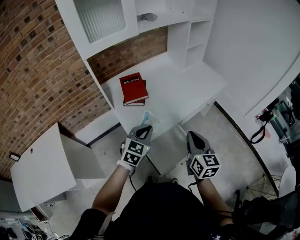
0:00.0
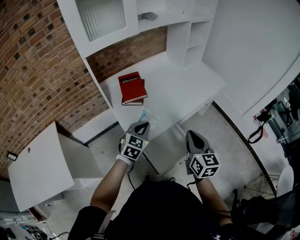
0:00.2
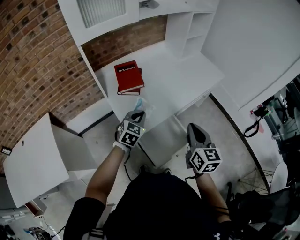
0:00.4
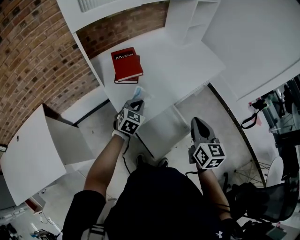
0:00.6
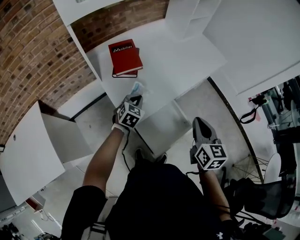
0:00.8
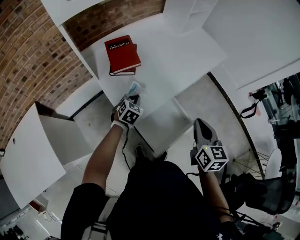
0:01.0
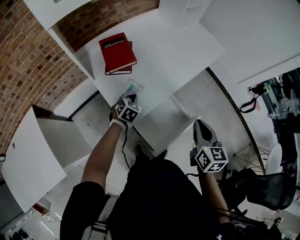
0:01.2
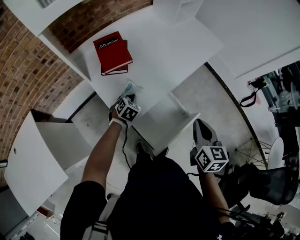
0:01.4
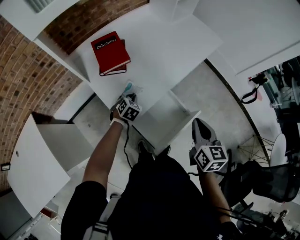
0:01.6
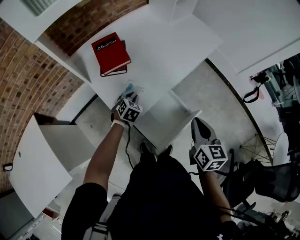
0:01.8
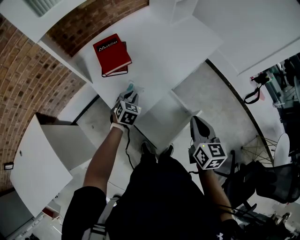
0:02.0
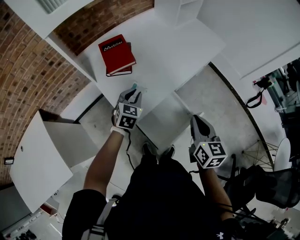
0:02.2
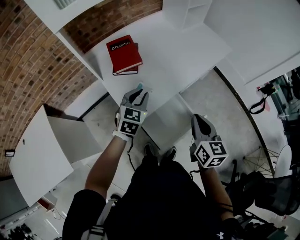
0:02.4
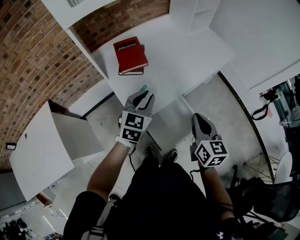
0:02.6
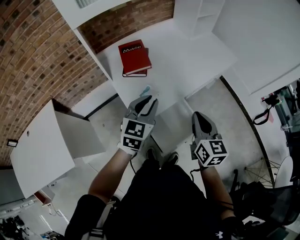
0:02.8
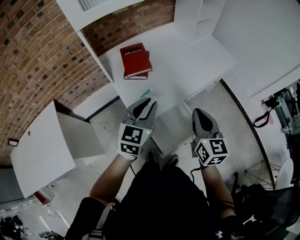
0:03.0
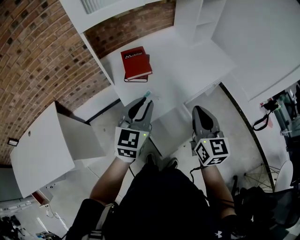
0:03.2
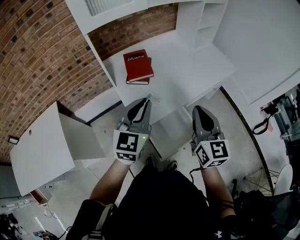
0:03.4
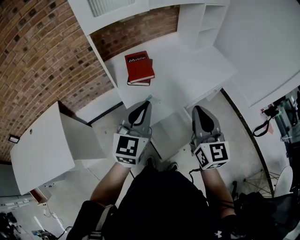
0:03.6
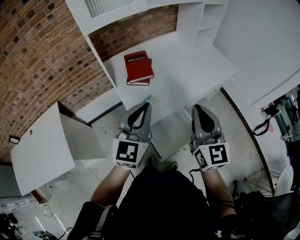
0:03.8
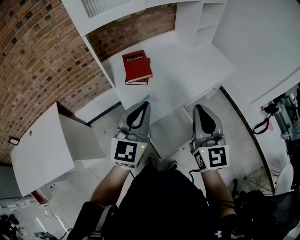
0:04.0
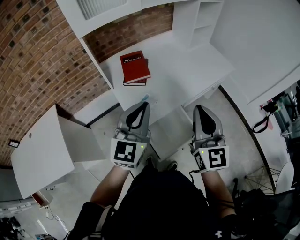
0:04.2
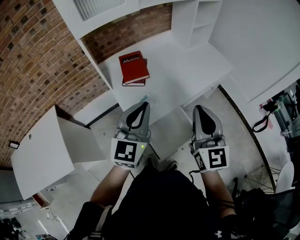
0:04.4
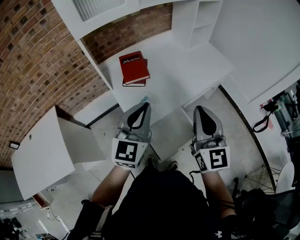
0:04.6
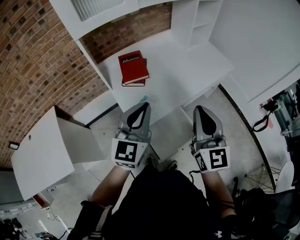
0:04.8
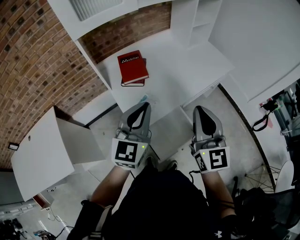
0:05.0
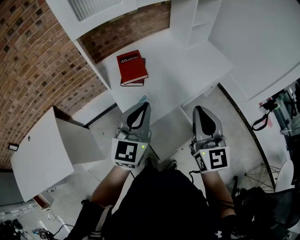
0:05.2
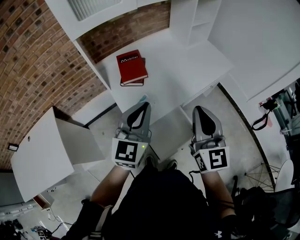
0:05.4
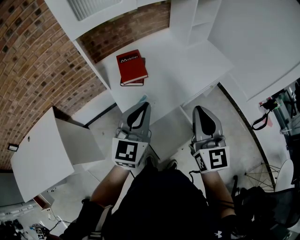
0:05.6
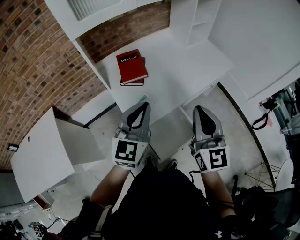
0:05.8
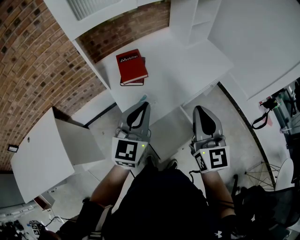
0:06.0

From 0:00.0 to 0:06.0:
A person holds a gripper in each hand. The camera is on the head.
From 0:00.0 to 0:01.6: The right gripper shifts roughly 5 cm downward, while the left gripper is displaced downward and forward by approximately 30 cm, and rotates approximately 30 degrees.
From 0:01.6 to 0:03.0: The right gripper travels upward and to the left by about 10 cm. The left gripper heads upward, covering about 30 cm, and tips its fingers upward by roughly 40 degrees.
From 0:03.0 to 0:04.4: The two grippers go some 10 cm upward. The right gripper rotates approximately 20 degrees.
From 0:04.4 to 0:06.0: The grippers move only a little.

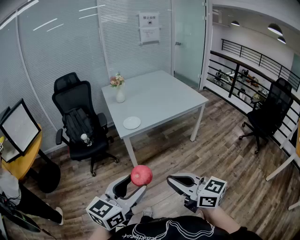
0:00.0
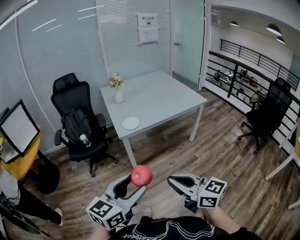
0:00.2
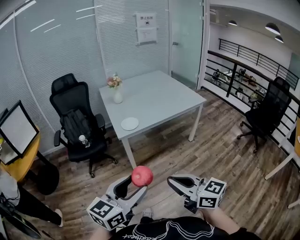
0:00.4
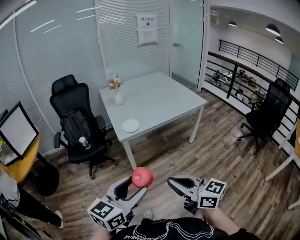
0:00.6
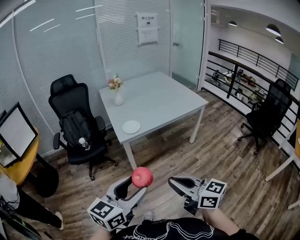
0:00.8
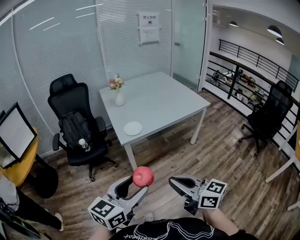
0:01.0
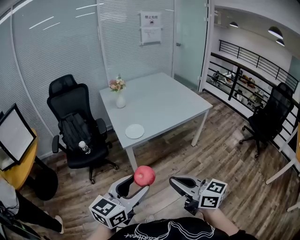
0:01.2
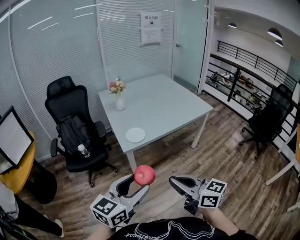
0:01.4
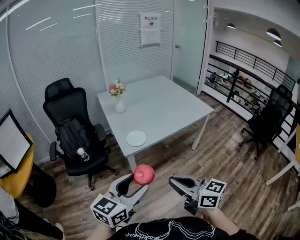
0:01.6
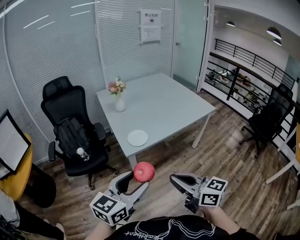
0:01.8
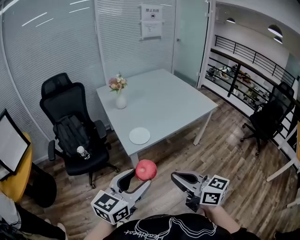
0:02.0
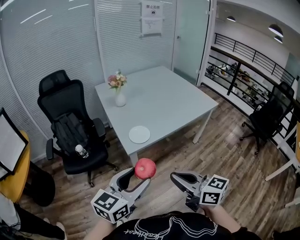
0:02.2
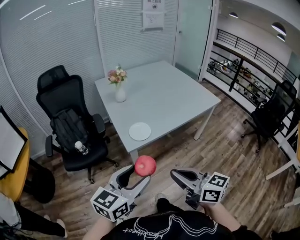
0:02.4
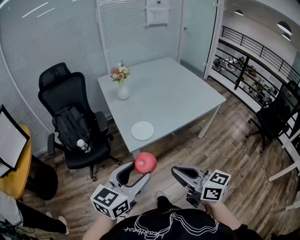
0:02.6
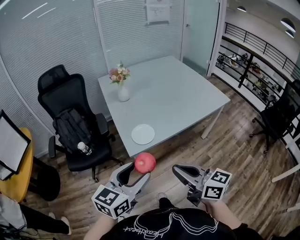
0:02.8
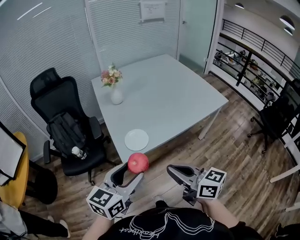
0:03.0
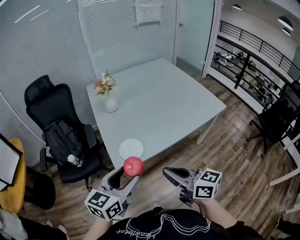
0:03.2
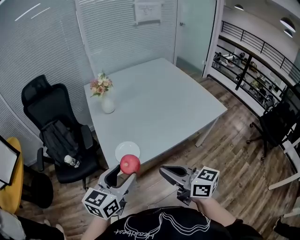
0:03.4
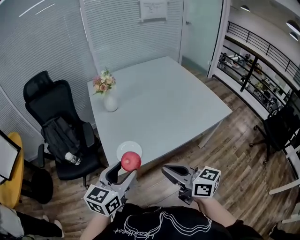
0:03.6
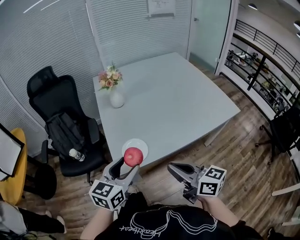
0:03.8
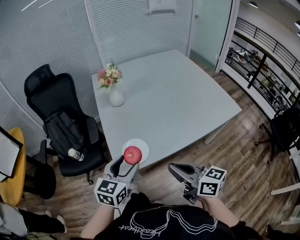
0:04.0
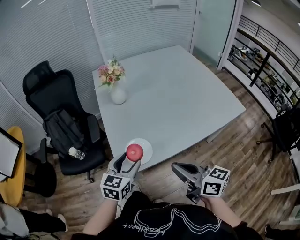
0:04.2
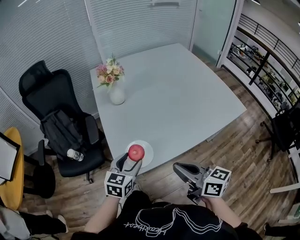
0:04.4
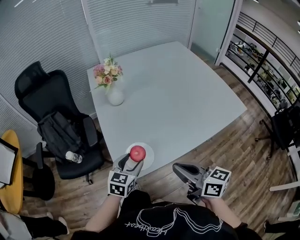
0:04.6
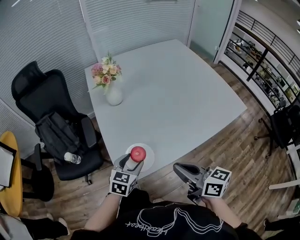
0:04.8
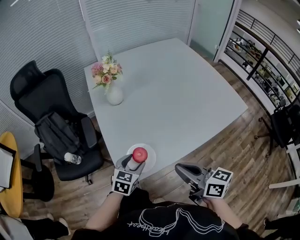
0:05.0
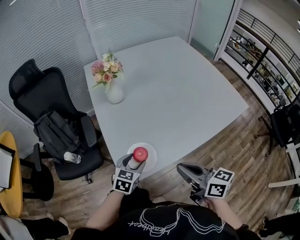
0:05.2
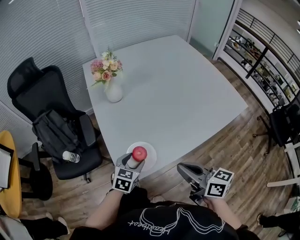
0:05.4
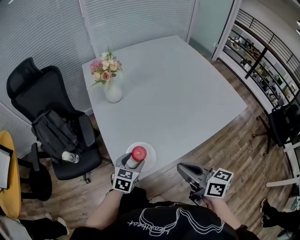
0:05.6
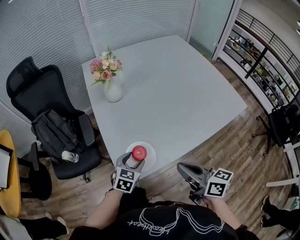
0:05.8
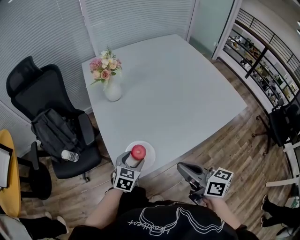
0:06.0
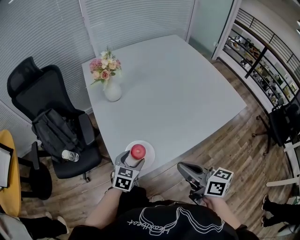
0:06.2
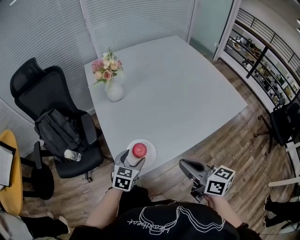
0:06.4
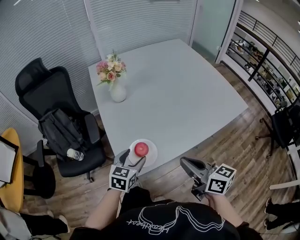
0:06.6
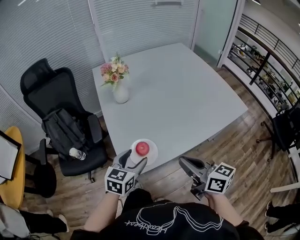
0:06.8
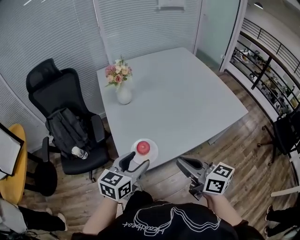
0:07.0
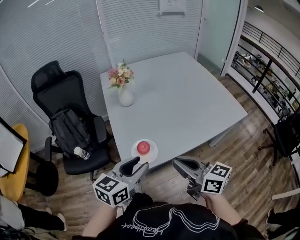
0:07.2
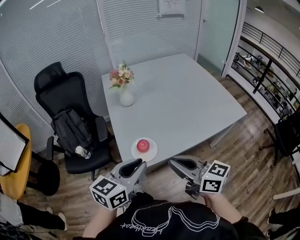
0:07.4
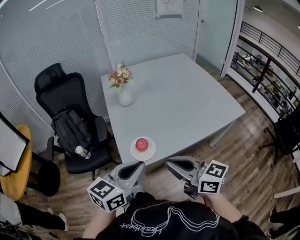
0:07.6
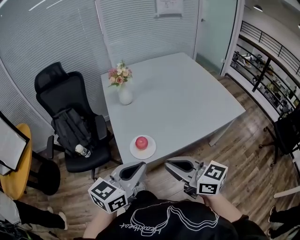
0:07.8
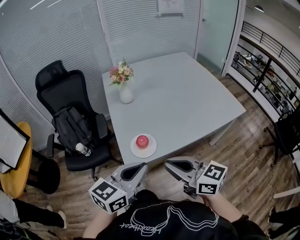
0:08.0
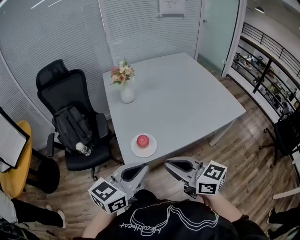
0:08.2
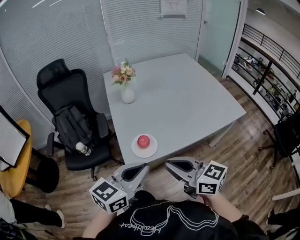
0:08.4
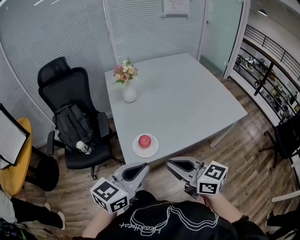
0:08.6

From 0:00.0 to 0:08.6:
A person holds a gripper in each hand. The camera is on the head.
From 0:00.0 to 0:01.4: Both grippers travel together forward, about 15 cm.
From 0:01.4 to 0:02.8: Both grippers move forward, about 20 cm.
From 0:02.8 to 0:04.4: The right gripper travels forward by some 20 cm. The left gripper shifts approximately 30 cm forward and downward, and rotates roughly 20 degrees.
From 0:04.4 to 0:05.8: The left gripper goes some 10 cm downward.
From 0:05.8 to 0:07.2: The right gripper moves upward and backward, some 10 cm; the left gripper shifts approximately 25 cm upward and backward, and turns by about 30 degrees.
From 0:07.2 to 0:08.6: The left gripper heads backward, covering some 5 cm, and closes its fingers. Meanwhile the right gripper shifts by about 5 cm.

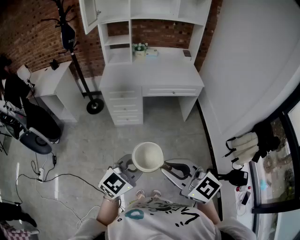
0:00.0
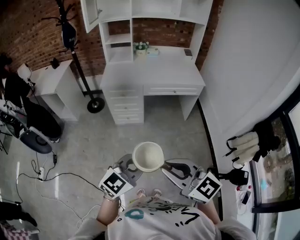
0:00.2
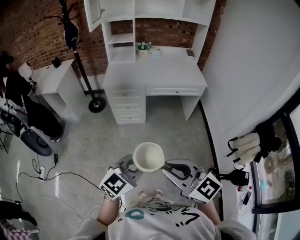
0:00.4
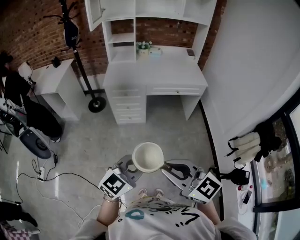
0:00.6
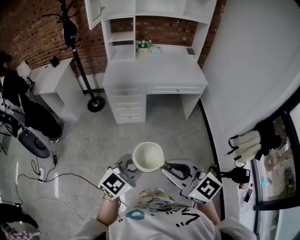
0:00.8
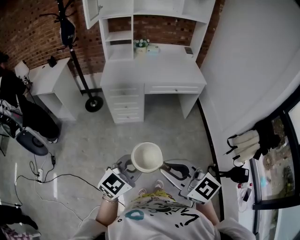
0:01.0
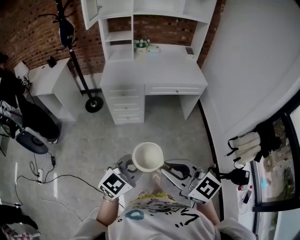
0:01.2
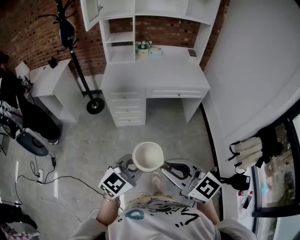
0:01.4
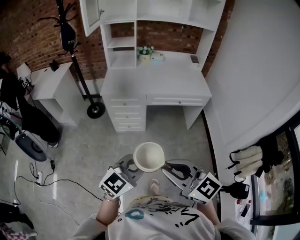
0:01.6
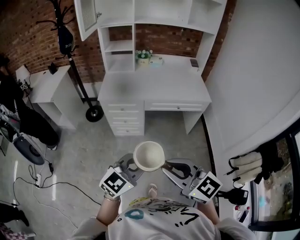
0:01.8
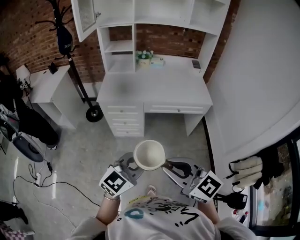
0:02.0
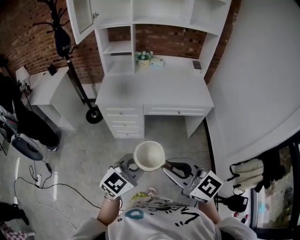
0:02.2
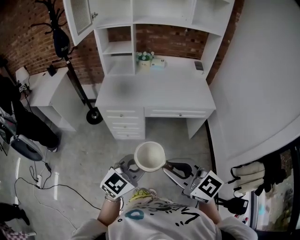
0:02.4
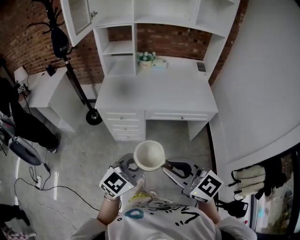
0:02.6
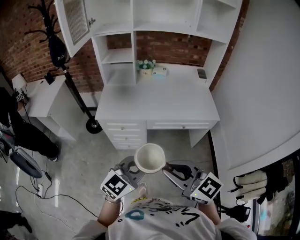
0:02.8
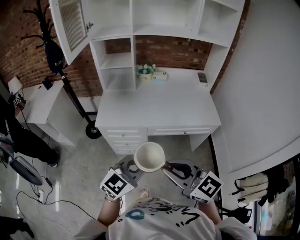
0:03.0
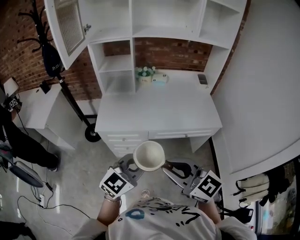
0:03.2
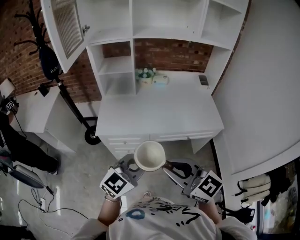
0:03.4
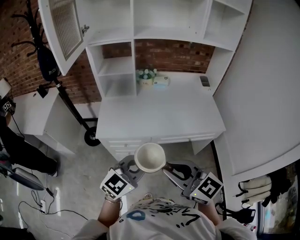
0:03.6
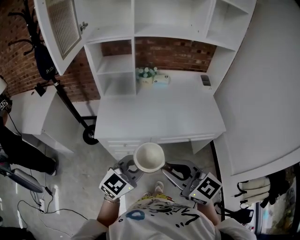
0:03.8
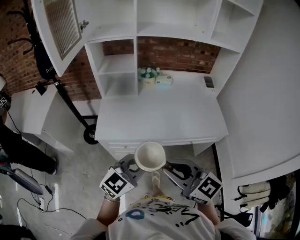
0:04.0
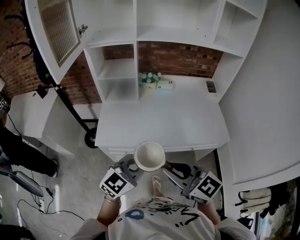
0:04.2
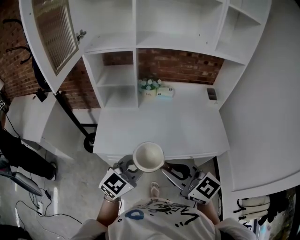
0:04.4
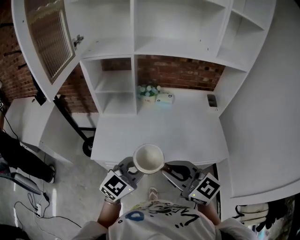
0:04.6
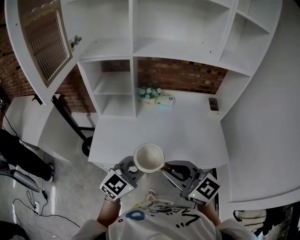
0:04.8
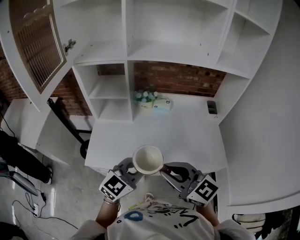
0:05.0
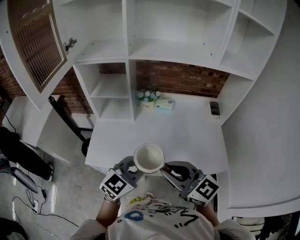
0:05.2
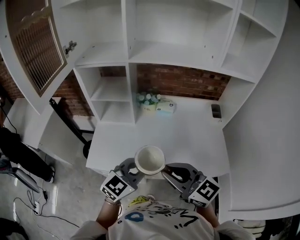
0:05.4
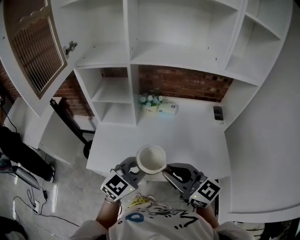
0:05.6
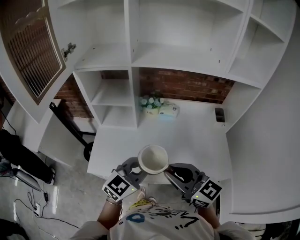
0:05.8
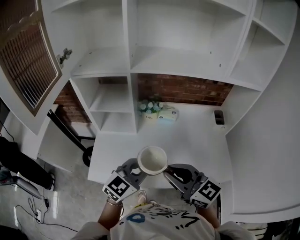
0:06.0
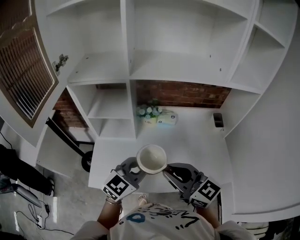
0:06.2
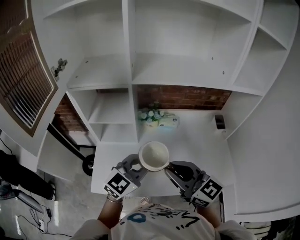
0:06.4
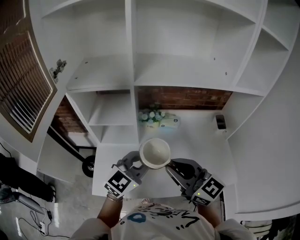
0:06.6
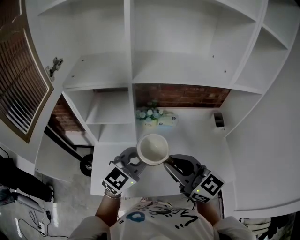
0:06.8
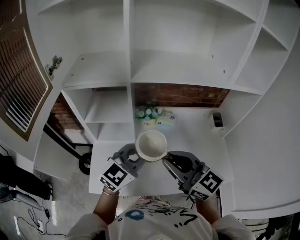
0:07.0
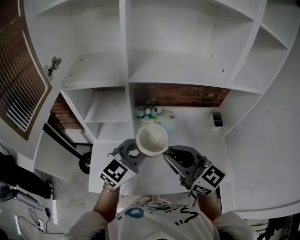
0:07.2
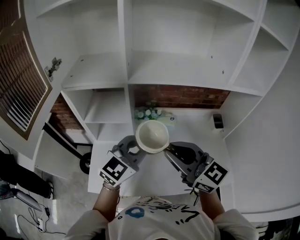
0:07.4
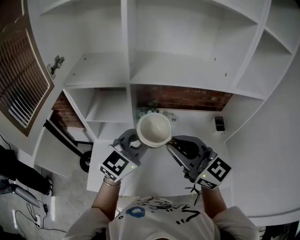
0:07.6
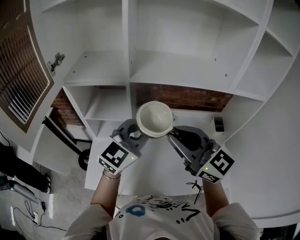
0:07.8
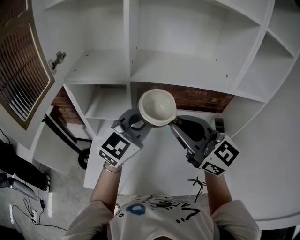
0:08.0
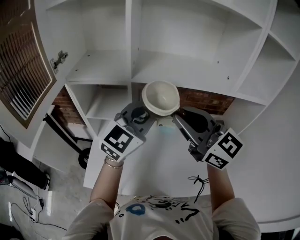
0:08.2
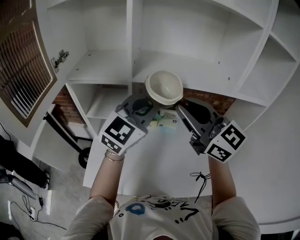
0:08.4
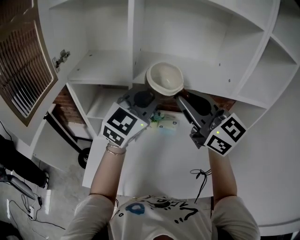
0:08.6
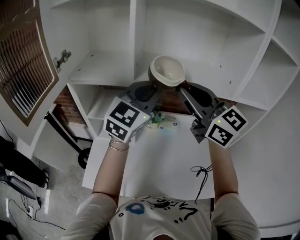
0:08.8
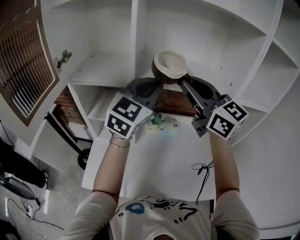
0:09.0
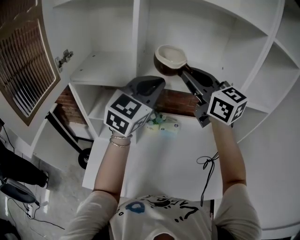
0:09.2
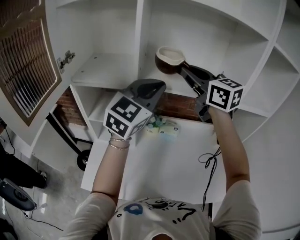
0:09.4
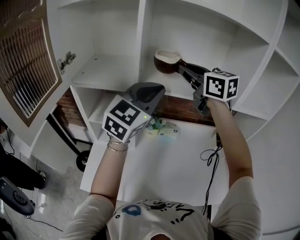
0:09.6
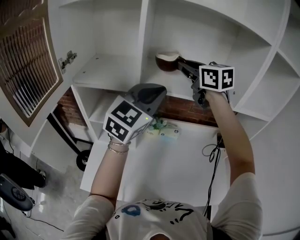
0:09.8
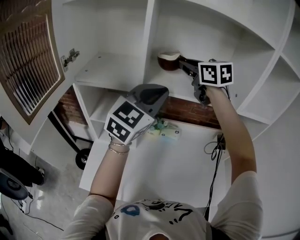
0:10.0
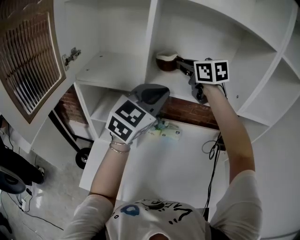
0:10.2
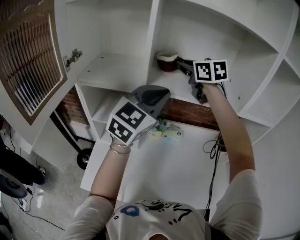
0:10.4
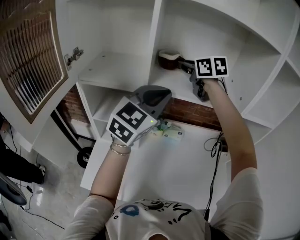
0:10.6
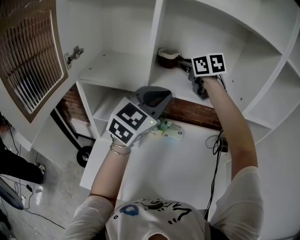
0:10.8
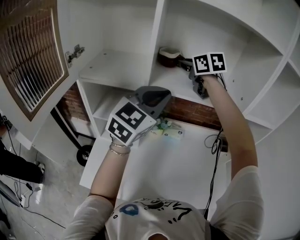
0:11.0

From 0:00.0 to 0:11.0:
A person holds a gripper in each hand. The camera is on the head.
From 0:00.0 to 0:01.6: Both grippers travel together forward, roughly 10 cm.
From 0:01.6 to 0:03.2: Both grippers move forward, roughly 30 cm.
From 0:03.2 to 0:04.8: Both grippers move forward, some 25 cm.
From 0:04.8 to 0:06.2: Both grippers travel together forward, roughly 15 cm.
From 0:06.2 to 0:07.8: The two grippers go some 15 cm forward and upward.
From 0:07.8 to 0:09.4: The right gripper shifts approximately 25 cm forward and upward. The left gripper is displaced upward and forward by roughly 15 cm.
From 0:09.4 to 0:11.0: The right gripper is displaced forward by roughly 15 cm, and rotates roughly 20 degrees.
